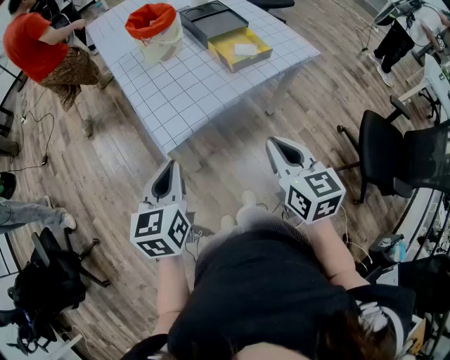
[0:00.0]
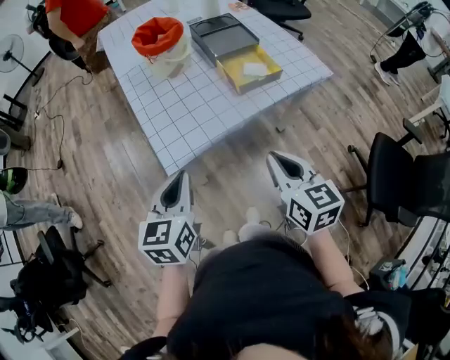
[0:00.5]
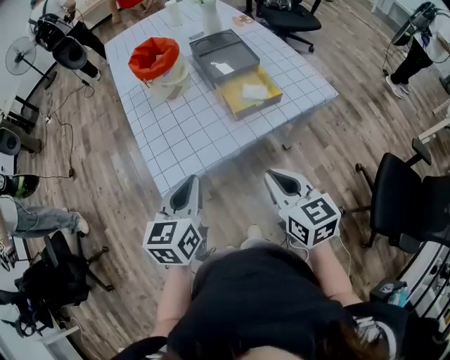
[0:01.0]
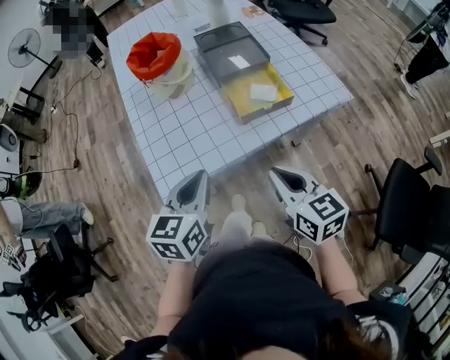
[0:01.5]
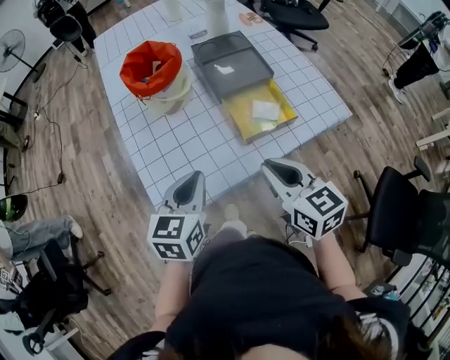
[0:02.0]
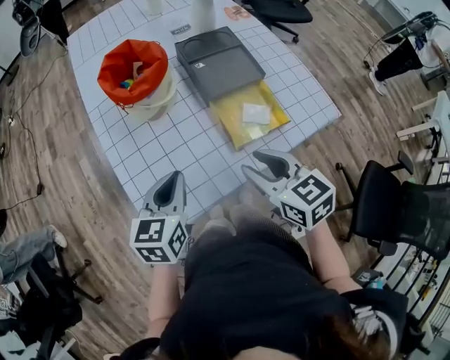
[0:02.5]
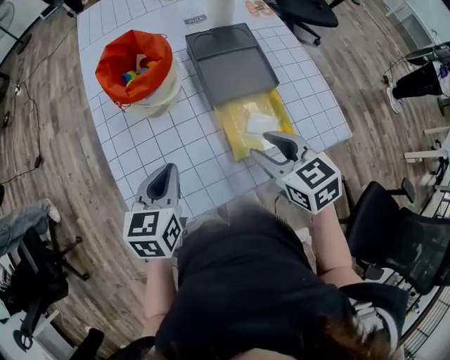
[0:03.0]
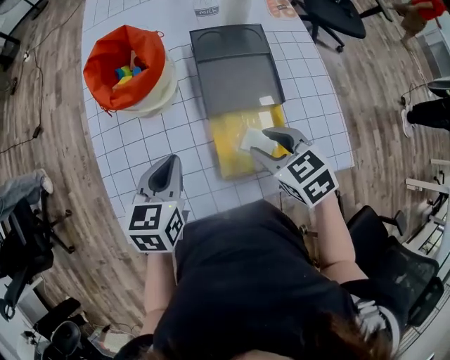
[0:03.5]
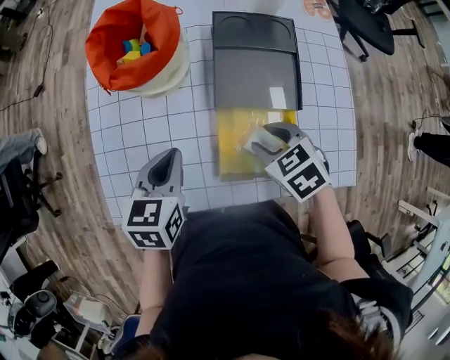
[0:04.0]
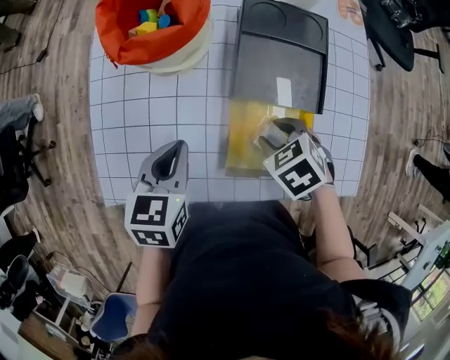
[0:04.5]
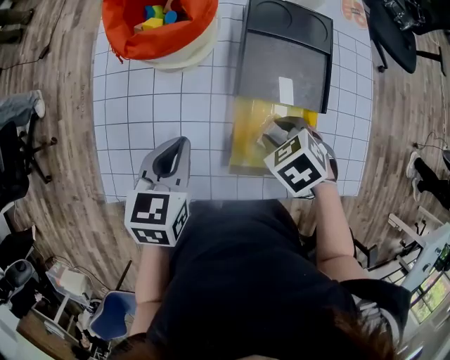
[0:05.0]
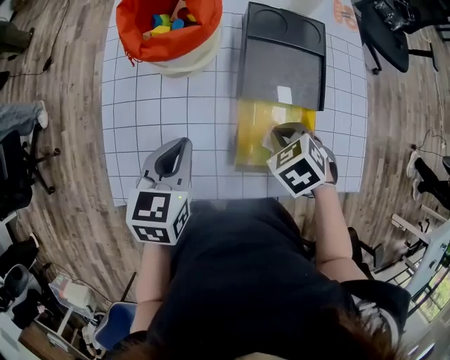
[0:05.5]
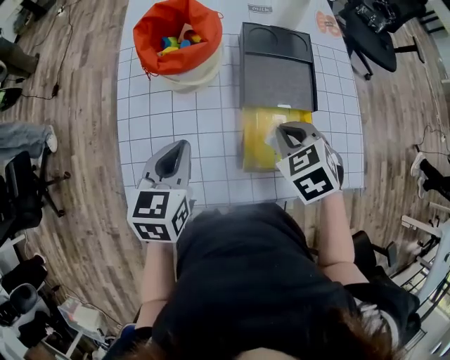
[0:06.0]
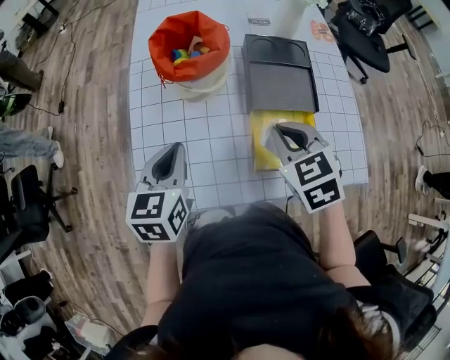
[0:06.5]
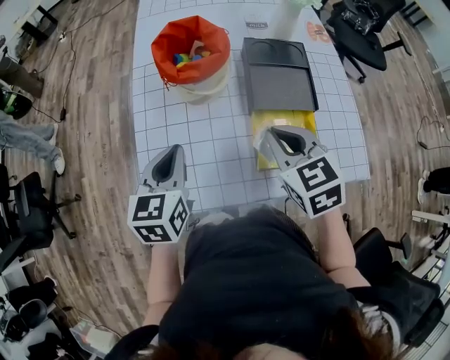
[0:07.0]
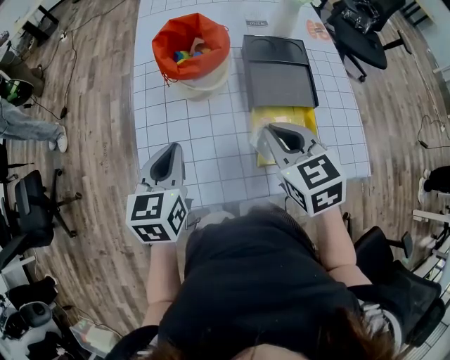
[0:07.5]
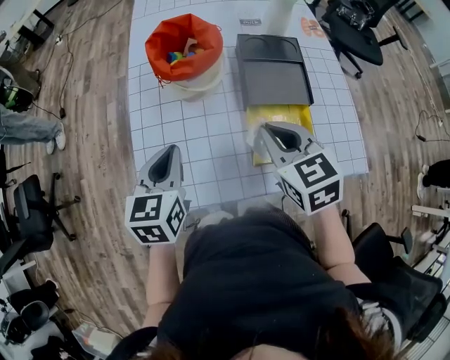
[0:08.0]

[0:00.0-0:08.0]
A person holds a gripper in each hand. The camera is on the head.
0:00.0 to 0:02.0: The left gripper moves forward and to the right, approximately 25 cm. Meanwhile the right gripper is displaced forward by roughly 25 cm.
0:02.0 to 0:04.0: The right gripper moves some 25 cm, tips its fingers downward by approximately 40 degrees, and opens up, while the left gripper ends up approximately 15 cm from where it was, and changes its angle by about 30 degrees.
0:04.0 to 0:06.0: The left gripper changes place by some 5 cm. Meanwhile the right gripper shifts roughly 5 cm upward, and closes up.
0:06.0 to 0:08.0: The left gripper moves to the left, approximately 5 cm; the right gripper moves upward and to the left, approximately 10 cm, and rotates approximately 30 degrees.

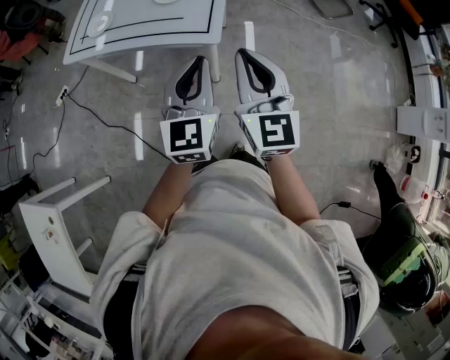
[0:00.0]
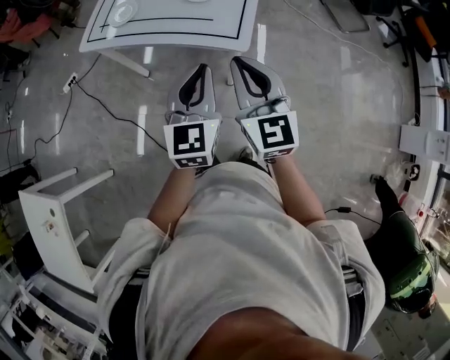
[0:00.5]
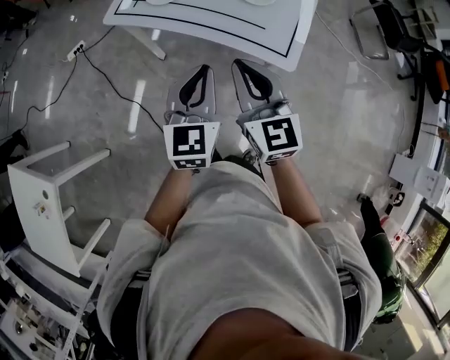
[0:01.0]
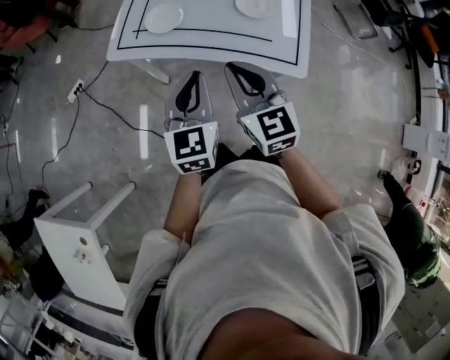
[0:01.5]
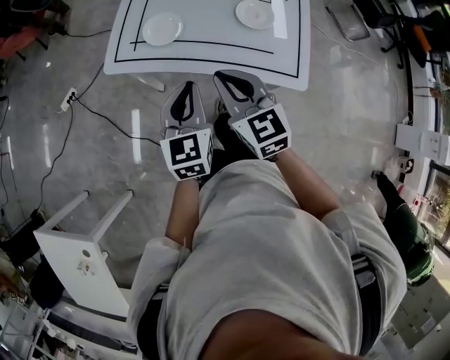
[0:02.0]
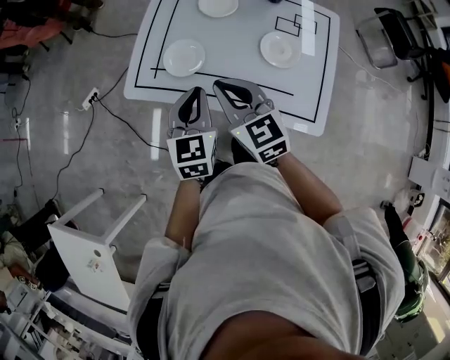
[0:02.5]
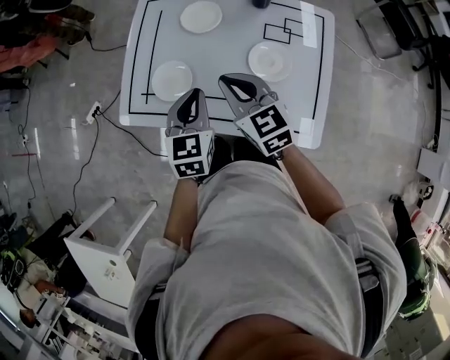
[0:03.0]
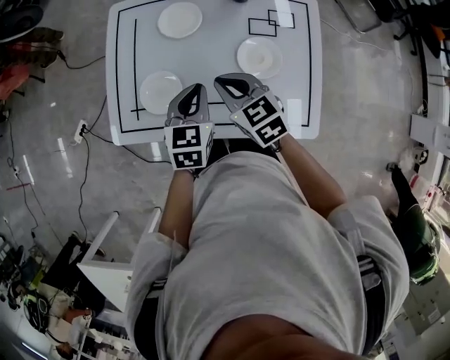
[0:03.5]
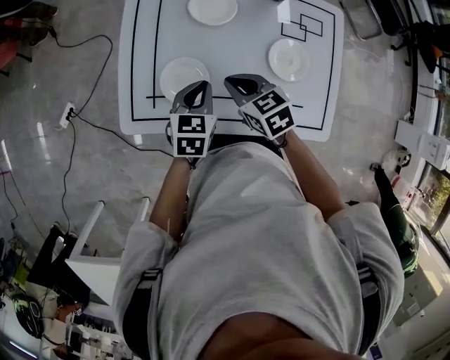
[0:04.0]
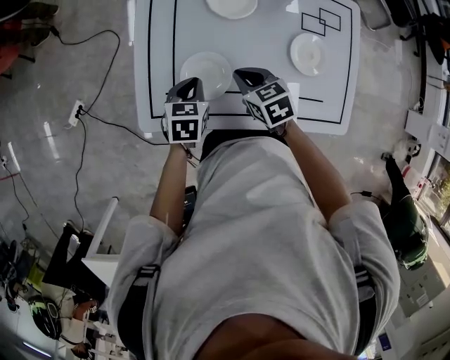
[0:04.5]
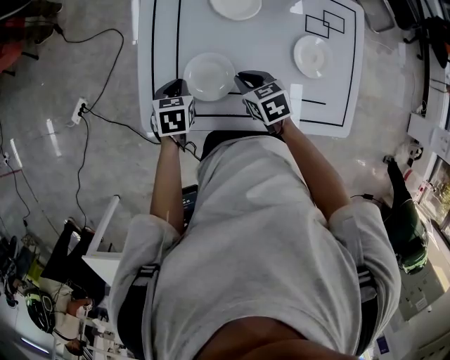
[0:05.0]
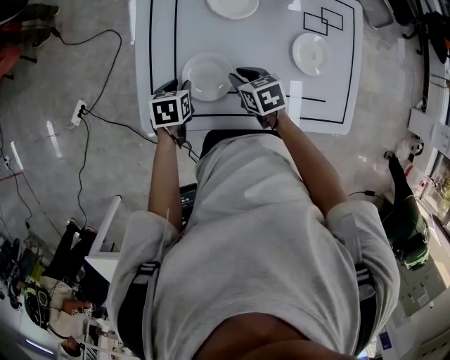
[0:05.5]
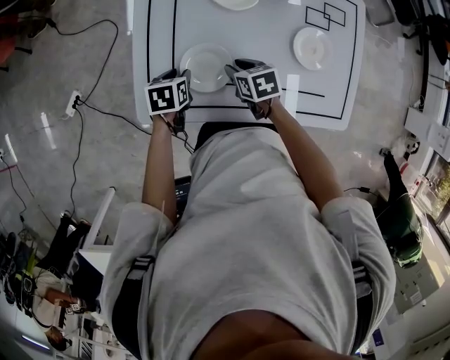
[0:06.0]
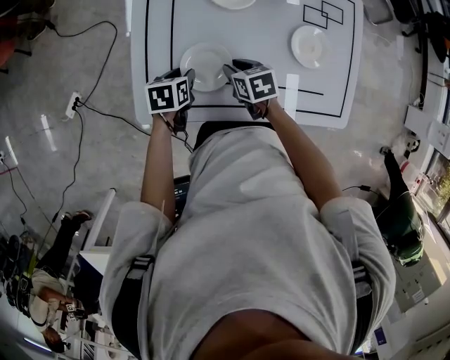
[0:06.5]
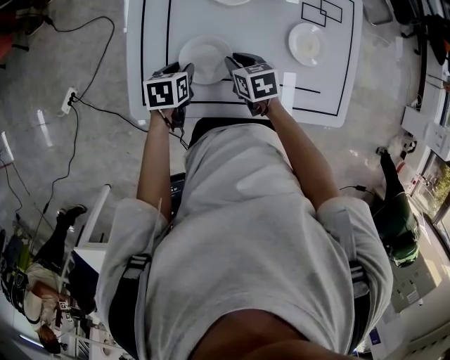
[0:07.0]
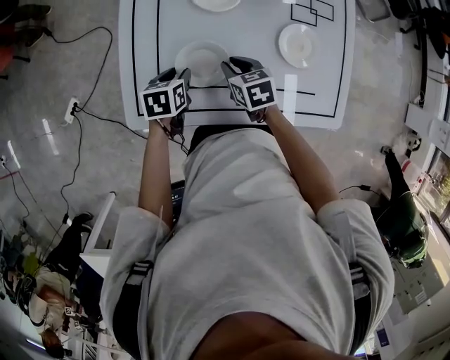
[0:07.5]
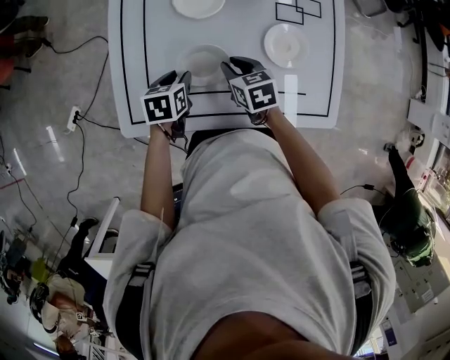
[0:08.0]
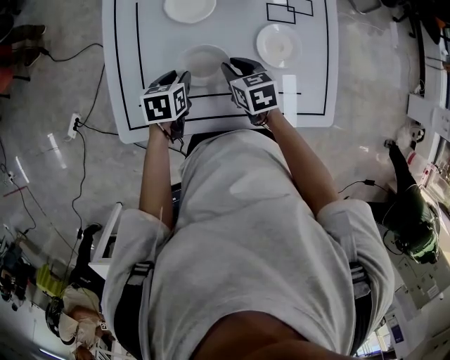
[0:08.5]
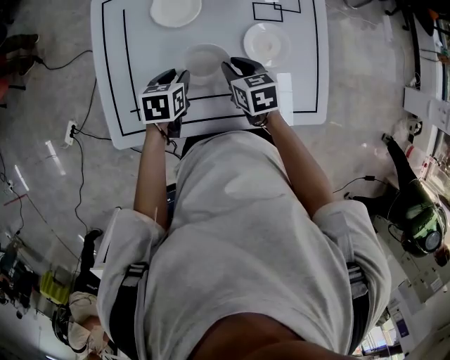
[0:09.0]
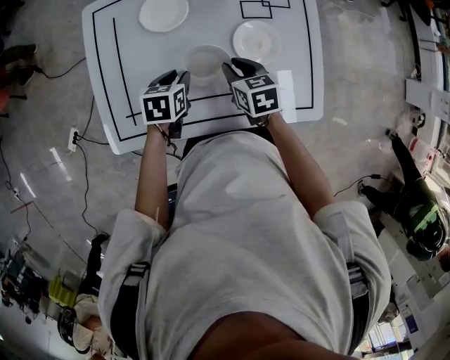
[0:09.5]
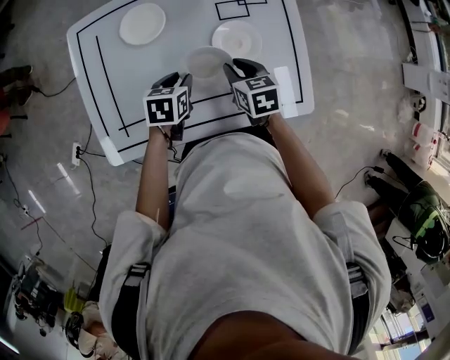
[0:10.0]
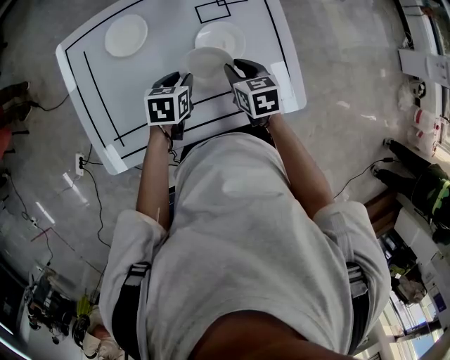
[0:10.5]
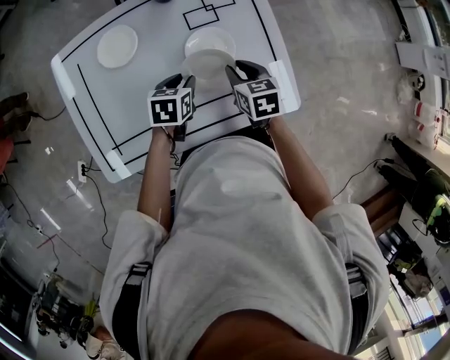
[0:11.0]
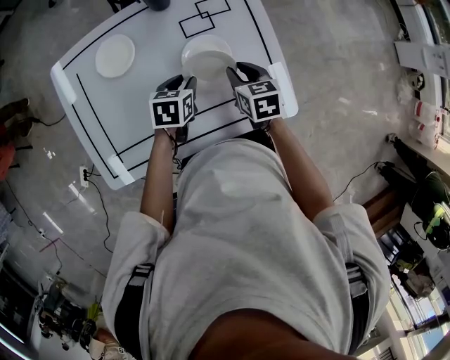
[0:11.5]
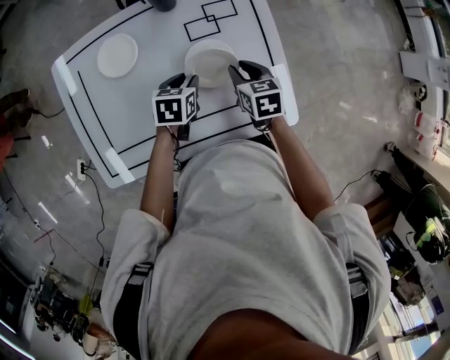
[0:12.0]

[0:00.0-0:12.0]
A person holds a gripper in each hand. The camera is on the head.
0:00.0 to 0:02.0: The pair of grippers is taken to the left and forward, some 50 cm. The right gripper turns by approximately 30 degrees.
0:02.0 to 0:04.0: The two grippers go about 35 cm forward and downward. The right gripper changes its angle by about 30 degrees. The left gripper rotates approximately 30 degrees.
0:04.0 to 0:06.0: The left gripper travels to the left and downward by approximately 20 cm, changes its angle by roughly 30 degrees, and opens its fingers. Meanwhile the right gripper heads downward, covering about 15 cm, swivels roughly 20 degrees, and opens up.
0:06.0 to 0:08.0: Both grippers travel together to the right, approximately 10 cm.
0:08.0 to 0:10.0: Both grippers move to the right, approximately 15 cm.
0:10.0 to 0:12.0: The grippers both shift to the right and forward by approximately 15 cm.

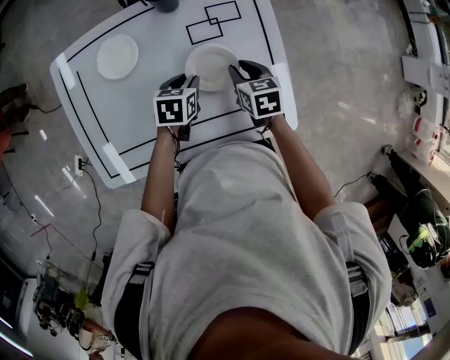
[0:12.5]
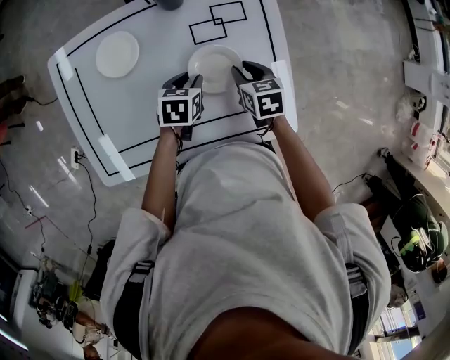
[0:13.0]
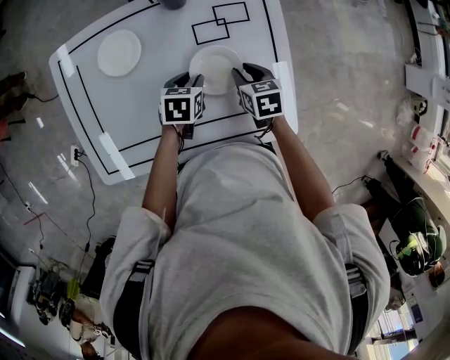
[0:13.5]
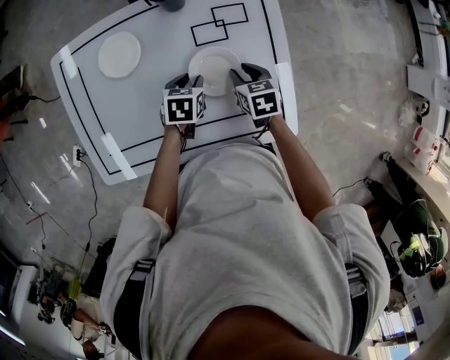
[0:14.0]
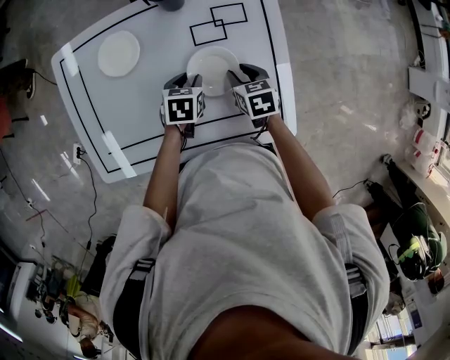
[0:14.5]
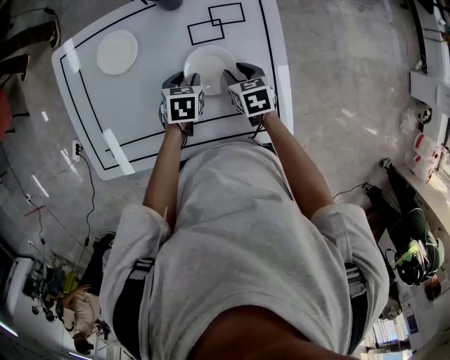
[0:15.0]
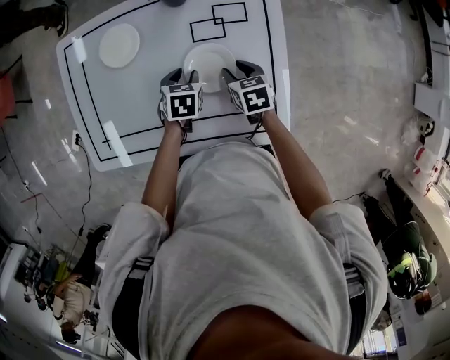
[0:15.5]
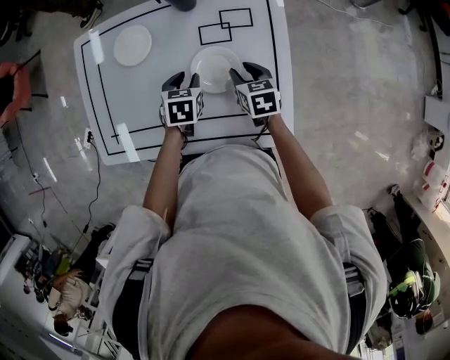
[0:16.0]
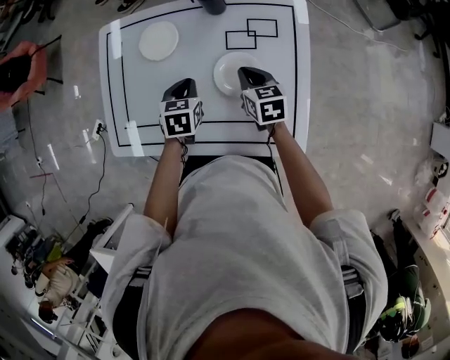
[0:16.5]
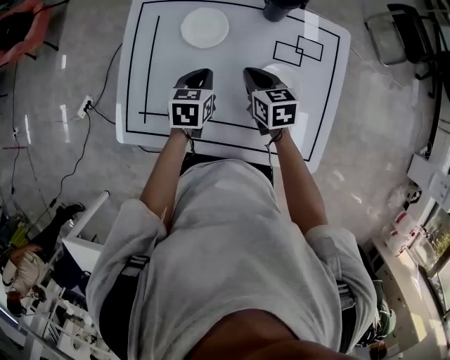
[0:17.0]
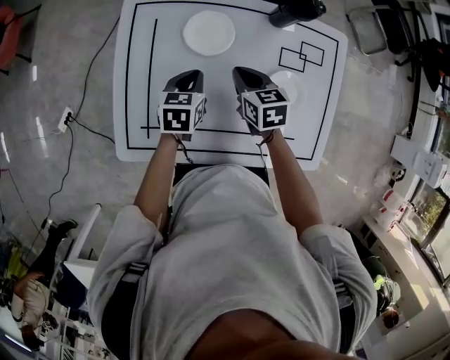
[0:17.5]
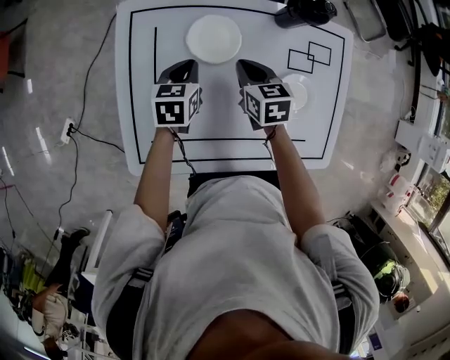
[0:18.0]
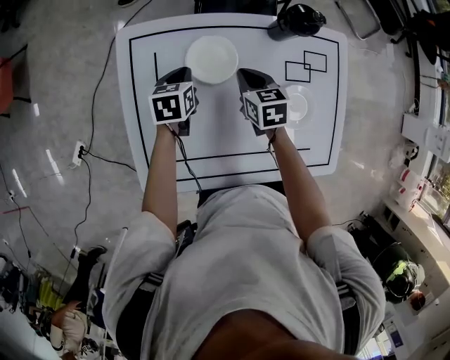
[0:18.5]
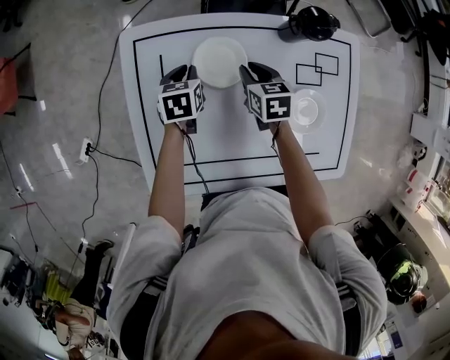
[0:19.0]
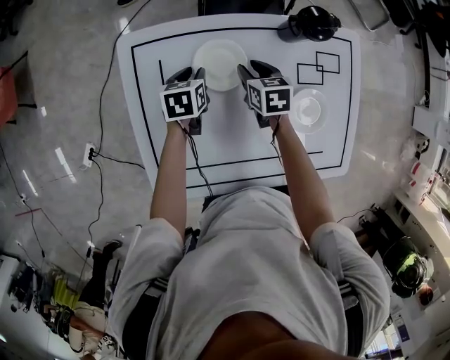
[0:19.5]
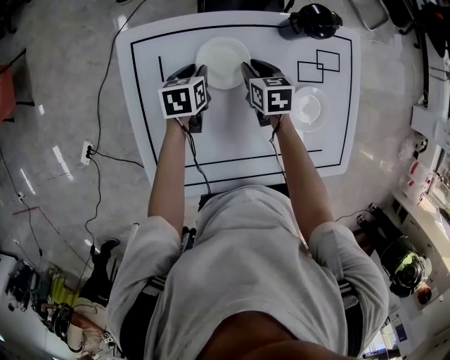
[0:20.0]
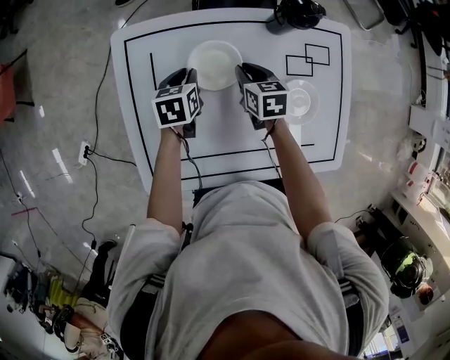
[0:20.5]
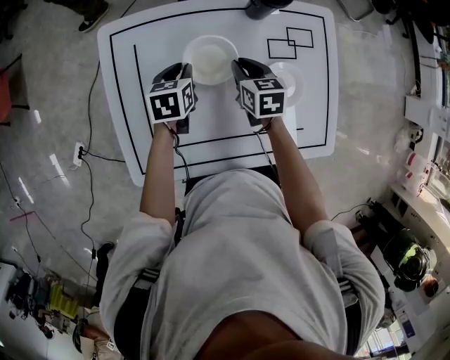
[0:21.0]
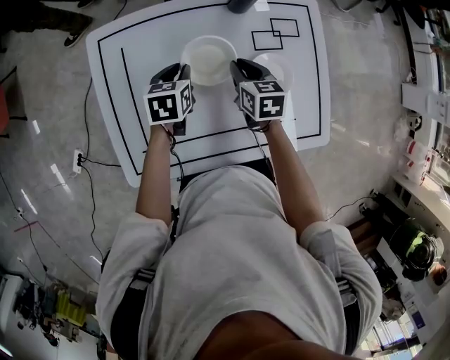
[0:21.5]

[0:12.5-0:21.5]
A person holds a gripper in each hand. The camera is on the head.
0:12.5 to 0:14.5: The grippers stay close to where they were, moving slightly.
0:14.5 to 0:17.0: The grippers both shift to the left and upward by some 20 cm. The left gripper changes its angle by about 20 degrees, and closes its fingers. The right gripper changes its angle by approximately 20 degrees, and closes up.
0:17.0 to 0:19.5: Both grippers move forward, to the left and downward, approximately 20 cm. The right gripper changes its angle by roughly 20 degrees, and opens. The left gripper opens.
0:19.5 to 0:21.5: Both grippers move backward, to the right and upward, about 15 cm. The right gripper closes up.
